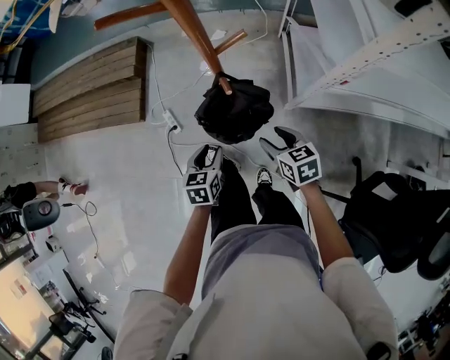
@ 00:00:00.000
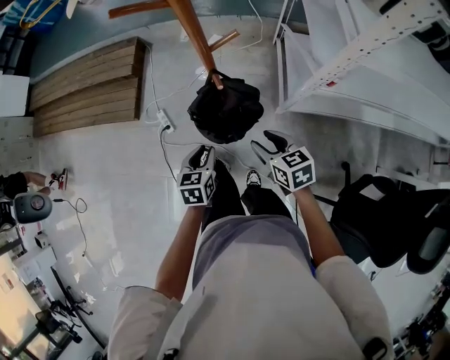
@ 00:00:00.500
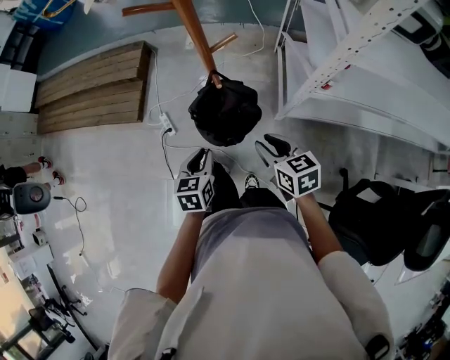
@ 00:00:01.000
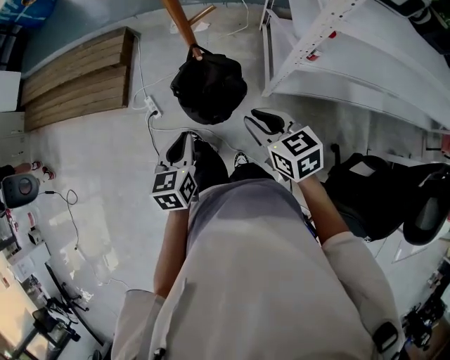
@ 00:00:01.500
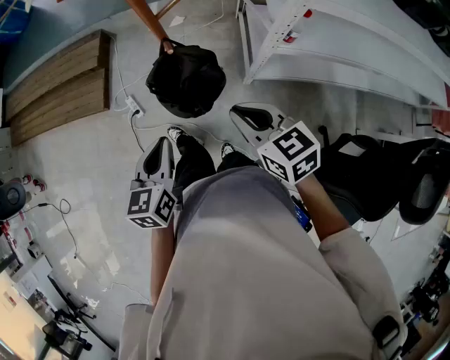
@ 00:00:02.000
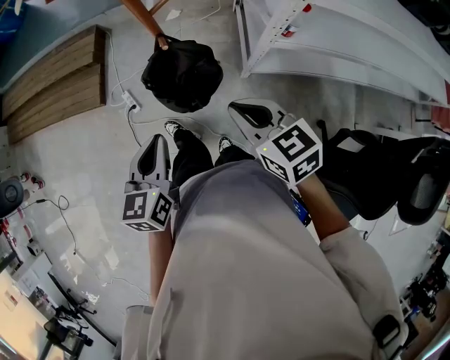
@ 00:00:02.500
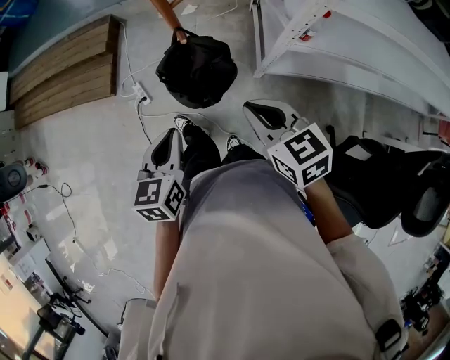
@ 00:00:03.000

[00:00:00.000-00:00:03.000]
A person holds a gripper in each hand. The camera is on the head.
00:00:00.000 to 00:00:01.500: The two grippers go approximately 15 cm upward and backward. The left gripper closes, while the right gripper closes its fingers.
00:00:01.500 to 00:00:03.000: The left gripper changes place by some 5 cm.

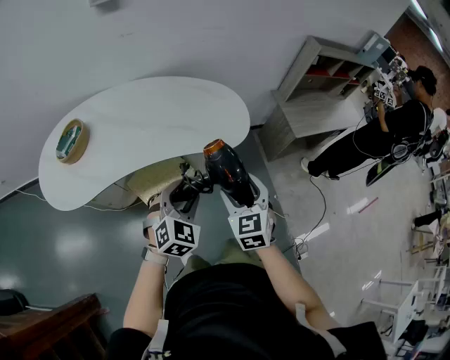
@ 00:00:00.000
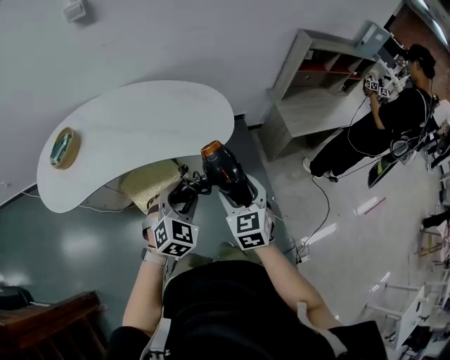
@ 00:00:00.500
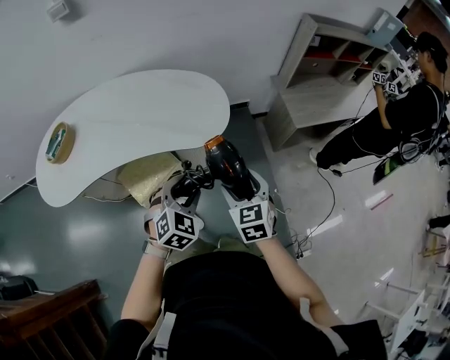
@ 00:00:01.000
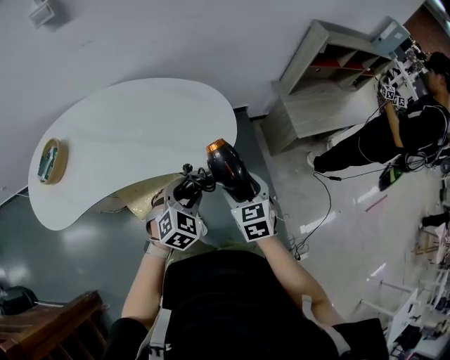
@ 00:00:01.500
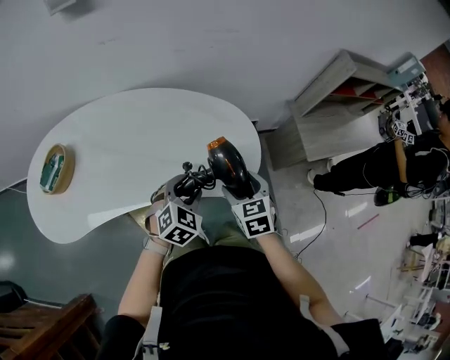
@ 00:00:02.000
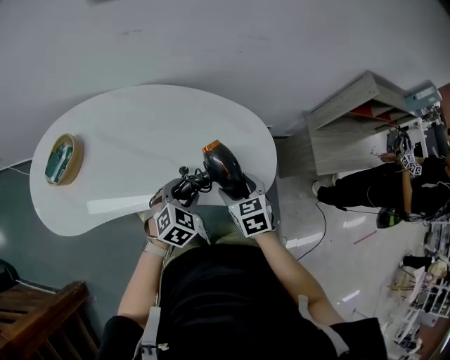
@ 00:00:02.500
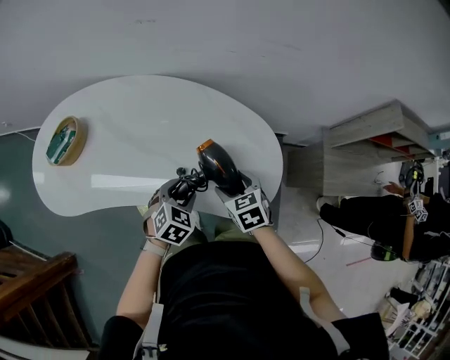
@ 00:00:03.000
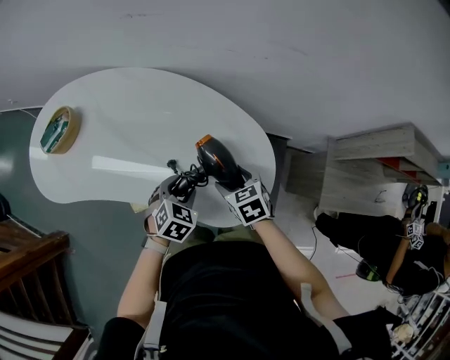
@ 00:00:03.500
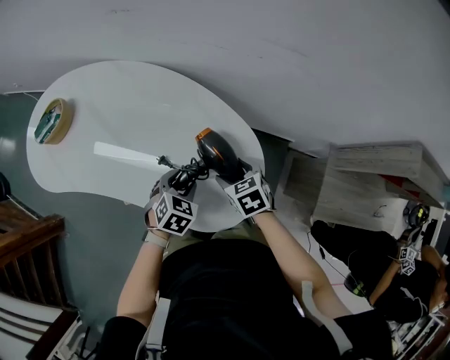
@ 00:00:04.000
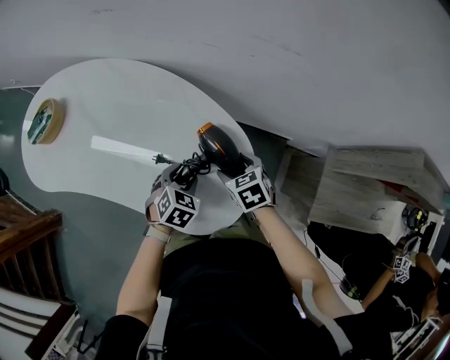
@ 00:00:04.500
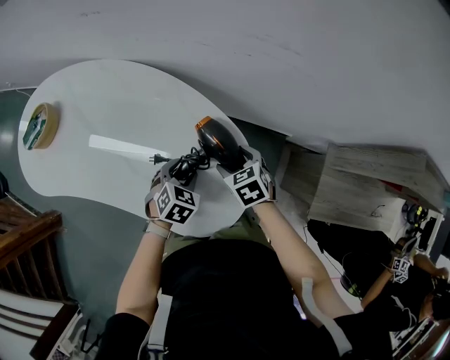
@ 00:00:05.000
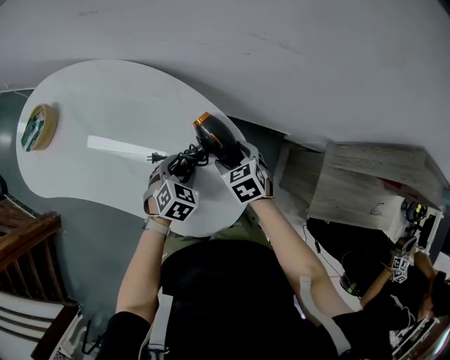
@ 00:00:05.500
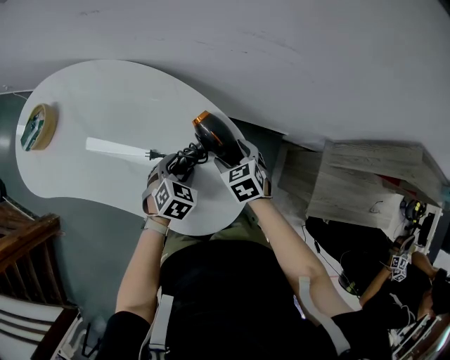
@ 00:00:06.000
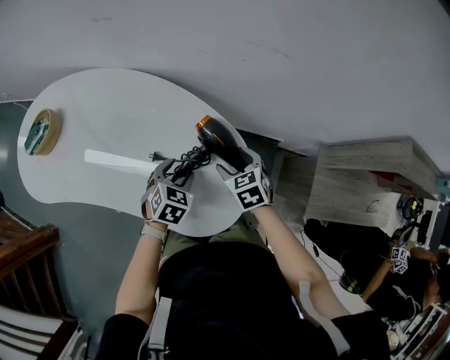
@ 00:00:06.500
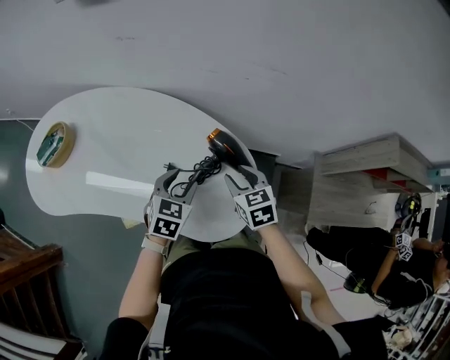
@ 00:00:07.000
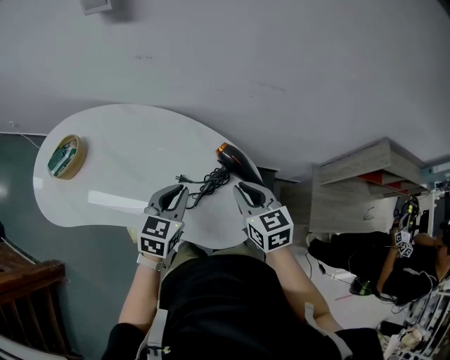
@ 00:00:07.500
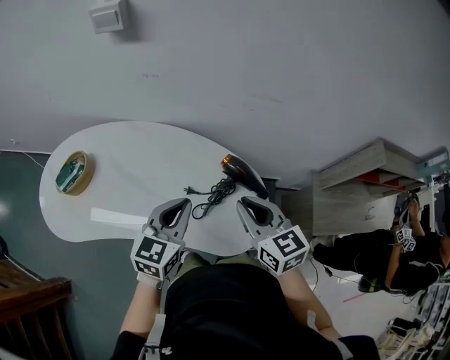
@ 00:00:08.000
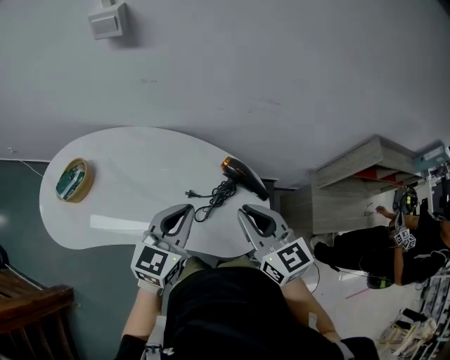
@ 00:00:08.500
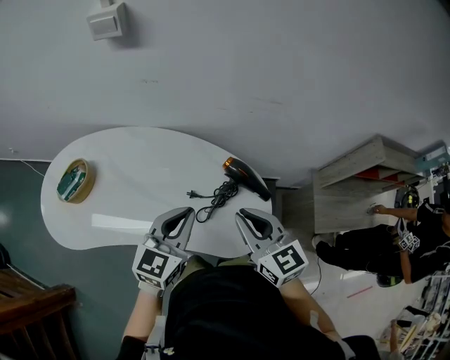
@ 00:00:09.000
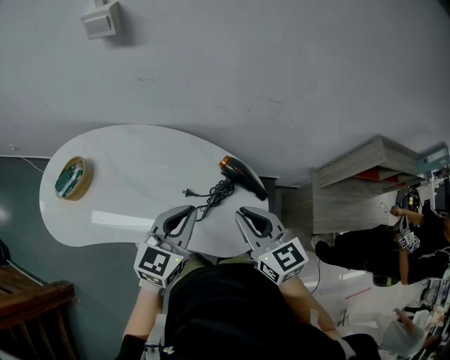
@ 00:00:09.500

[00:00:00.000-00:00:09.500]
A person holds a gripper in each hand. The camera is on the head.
00:00:00.000 to 00:00:02.000: The two grippers go about 25 cm forward.
00:00:02.000 to 00:00:04.000: The right gripper ends up roughly 25 cm from where it was, and changes its angle by roughly 40 degrees. The left gripper ends up approximately 20 cm from where it was, and turns by about 40 degrees.
00:00:04.000 to 00:00:05.500: The two grippers go approximately 10 cm forward and to the right.
00:00:05.500 to 00:00:07.500: The left gripper moves upward and to the left, about 25 cm, angles its fingers upward, by some 30 degrees, and closes; the right gripper goes about 25 cm upward, rotates roughly 30 degrees, and closes its fingers.
00:00:07.500 to 00:00:09.500: The right gripper shifts roughly 10 cm upward and backward, while the left gripper travels upward by about 10 cm.

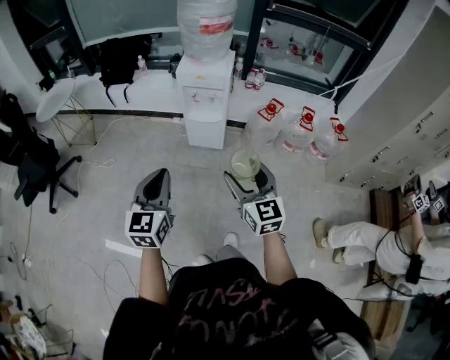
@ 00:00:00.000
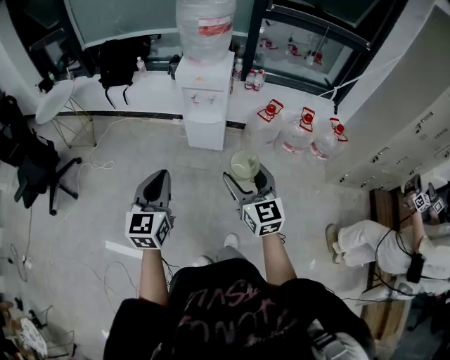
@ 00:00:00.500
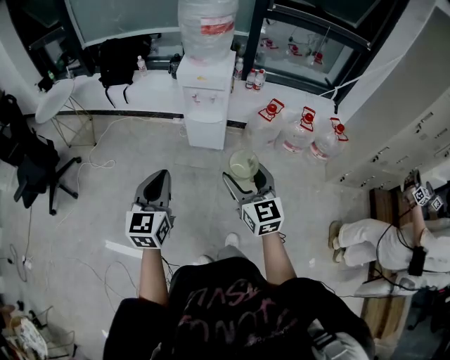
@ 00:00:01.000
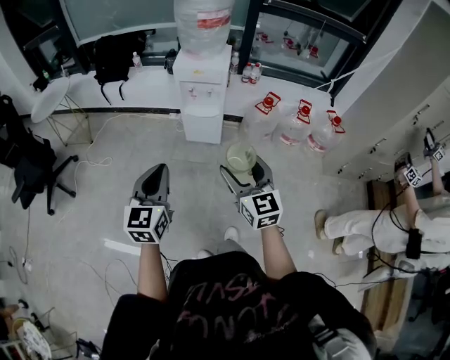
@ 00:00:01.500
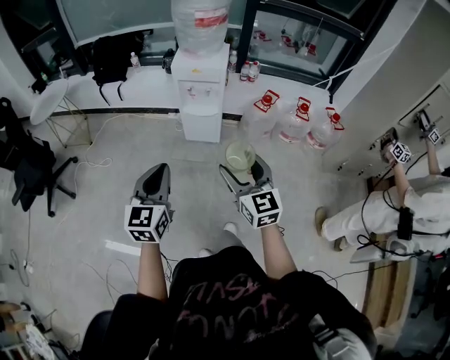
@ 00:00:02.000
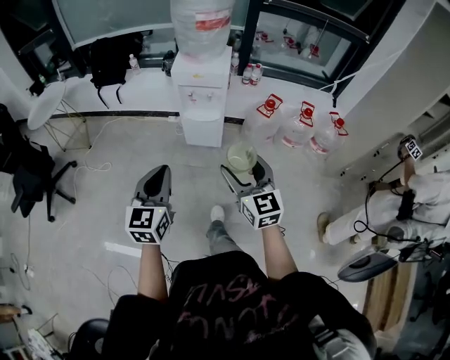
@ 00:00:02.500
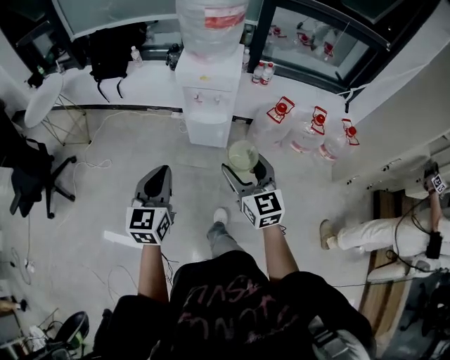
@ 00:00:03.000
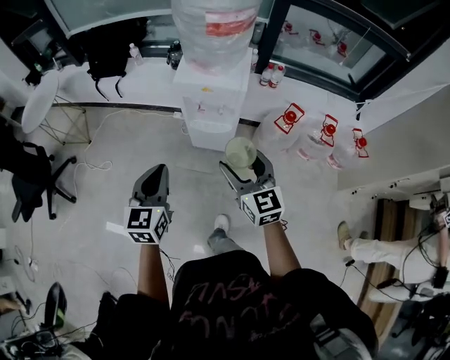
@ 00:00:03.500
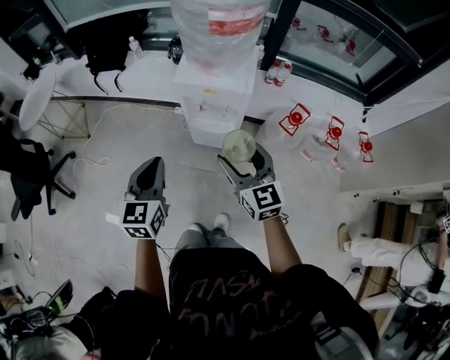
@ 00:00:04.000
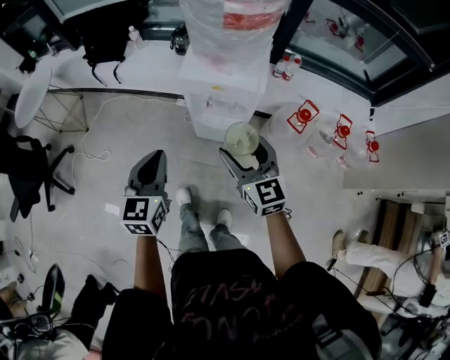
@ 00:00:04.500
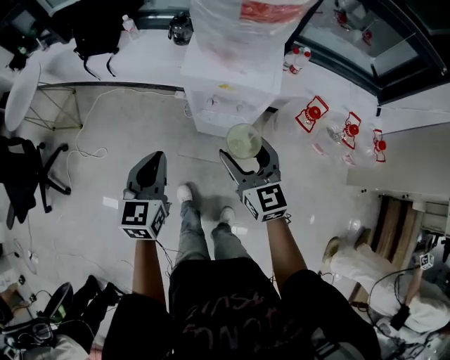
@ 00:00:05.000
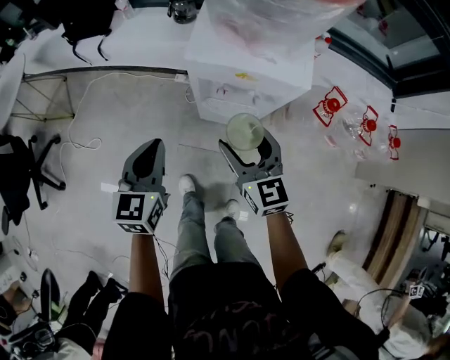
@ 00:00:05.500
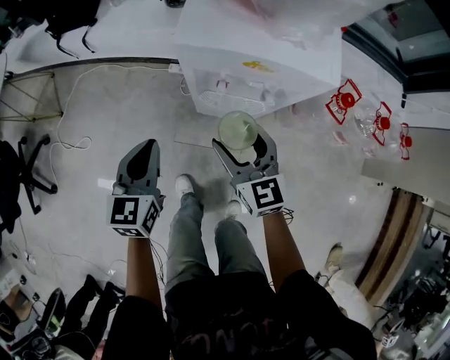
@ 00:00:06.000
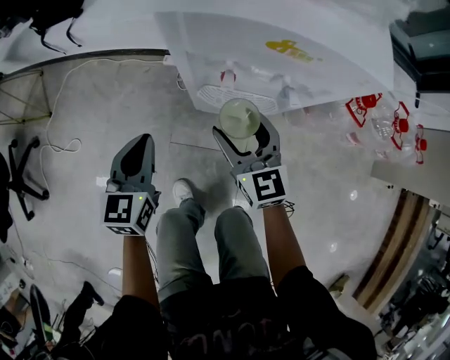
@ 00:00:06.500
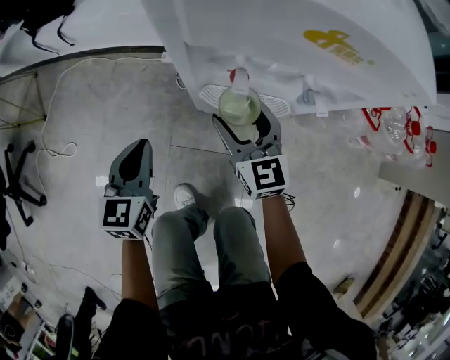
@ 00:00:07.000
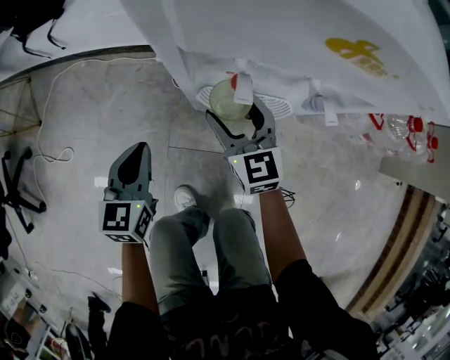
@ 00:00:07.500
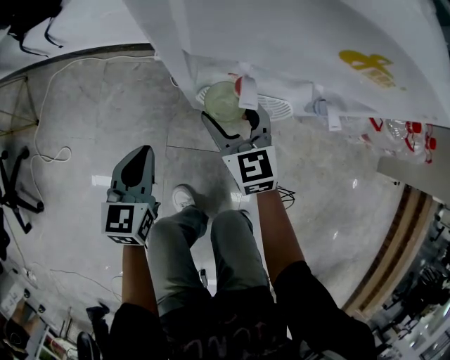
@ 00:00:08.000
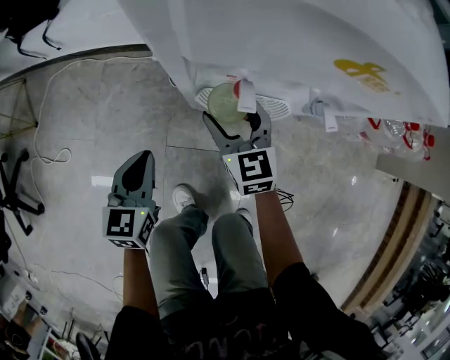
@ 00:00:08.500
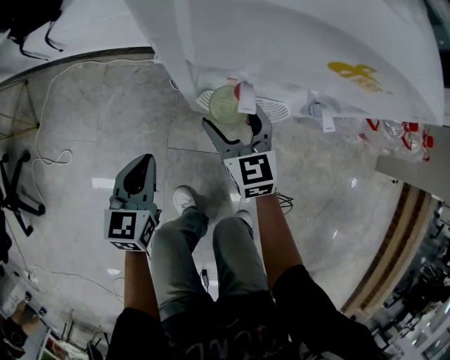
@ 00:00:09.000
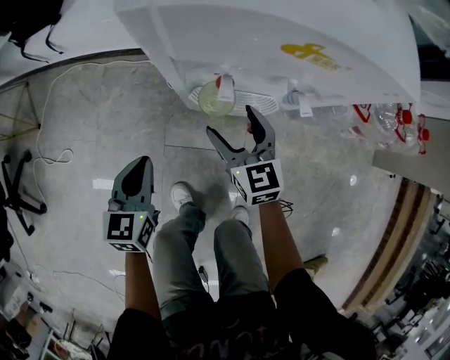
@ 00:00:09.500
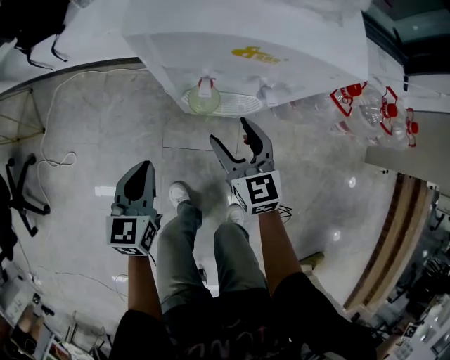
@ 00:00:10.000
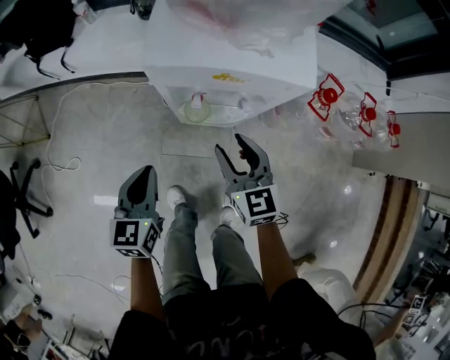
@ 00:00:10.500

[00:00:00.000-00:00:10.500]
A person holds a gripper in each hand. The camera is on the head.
00:00:00.000 to 00:00:02.000: The grippers make only small movements.
00:00:02.000 to 00:00:04.000: Both grippers move forward, about 35 cm.
00:00:04.000 to 00:00:06.500: The grippers both shift downward and forward by some 40 cm.
00:00:06.500 to 00:00:08.500: The right gripper moves downward and forward, some 10 cm; the left gripper moves downward, roughly 10 cm.
00:00:08.500 to 00:00:10.500: The left gripper is displaced upward by approximately 20 cm. Meanwhile the right gripper travels upward and backward by roughly 25 cm, and closes.

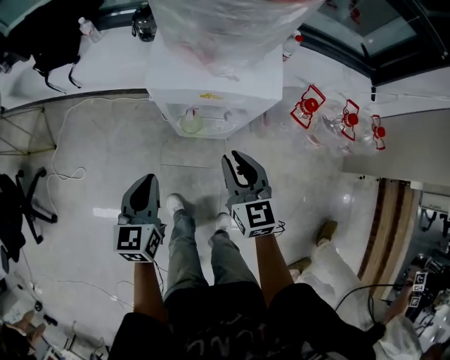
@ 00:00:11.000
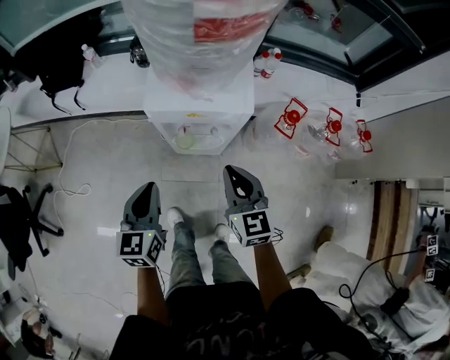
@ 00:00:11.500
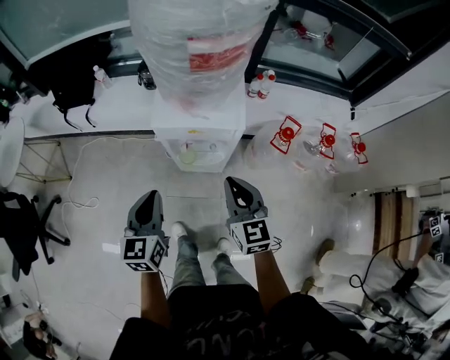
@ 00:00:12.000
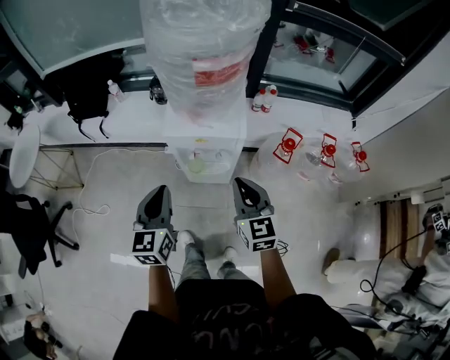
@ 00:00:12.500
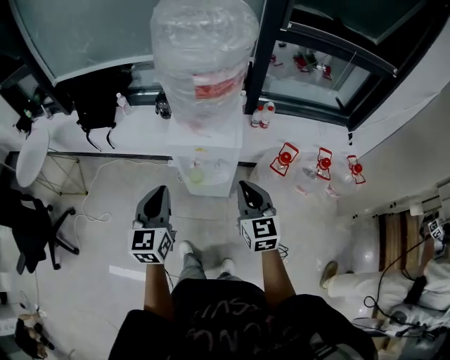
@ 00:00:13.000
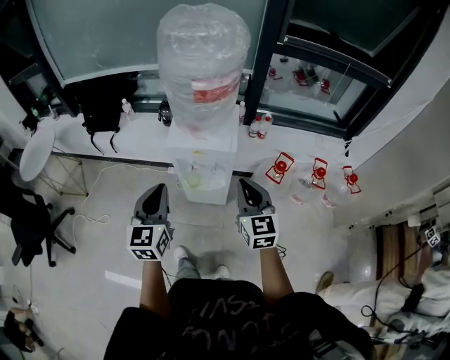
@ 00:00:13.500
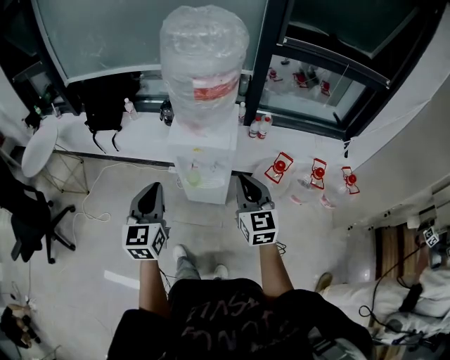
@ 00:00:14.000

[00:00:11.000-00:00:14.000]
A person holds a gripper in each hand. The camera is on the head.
00:00:11.000 to 00:00:12.500: The grippers both shift upward by approximately 20 cm.
00:00:12.500 to 00:00:14.000: The left gripper travels upward and backward by about 10 cm. The right gripper travels upward by roughly 10 cm.
